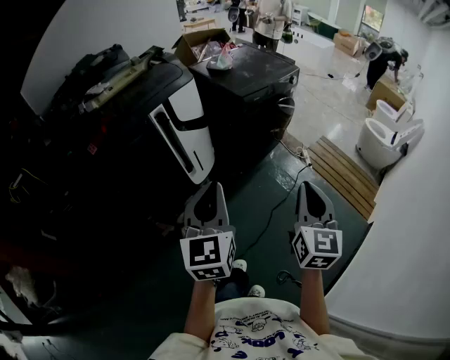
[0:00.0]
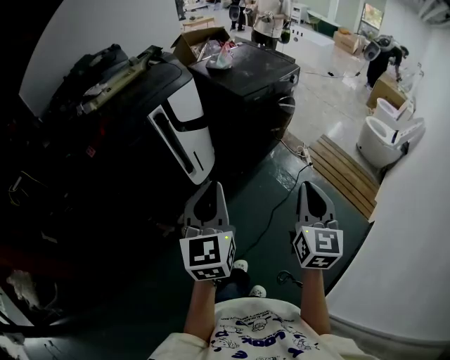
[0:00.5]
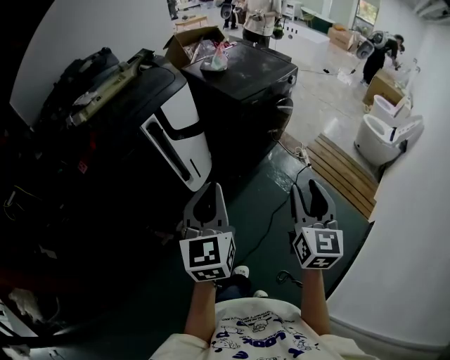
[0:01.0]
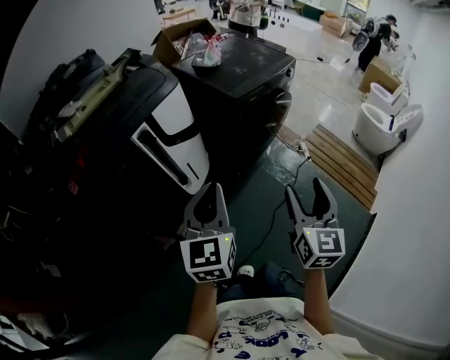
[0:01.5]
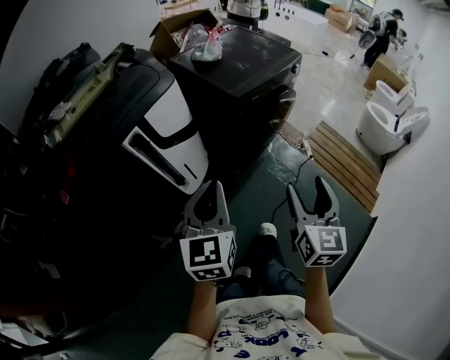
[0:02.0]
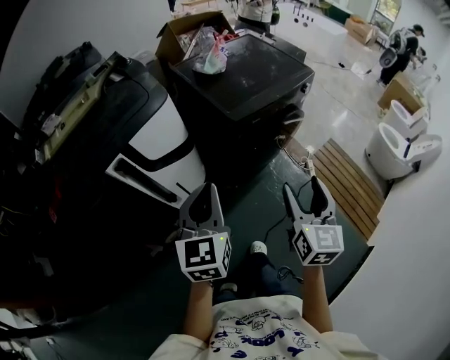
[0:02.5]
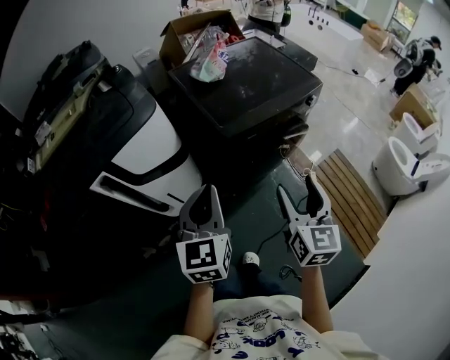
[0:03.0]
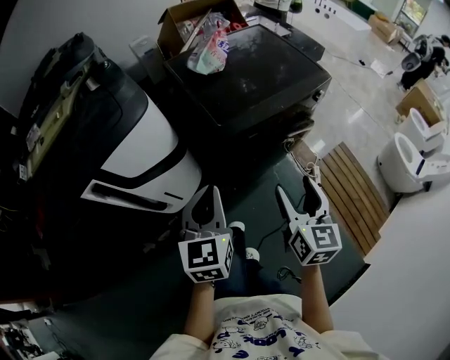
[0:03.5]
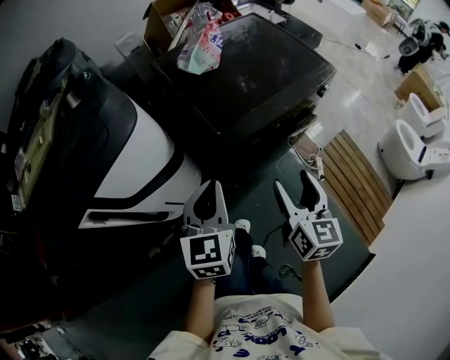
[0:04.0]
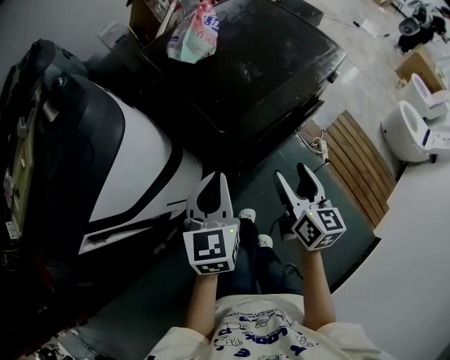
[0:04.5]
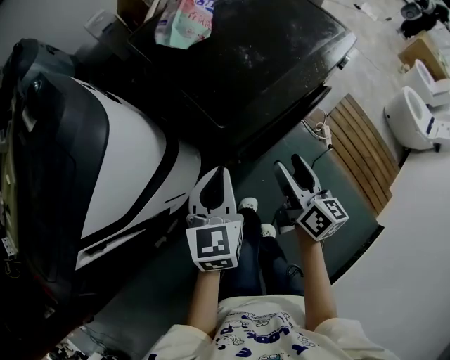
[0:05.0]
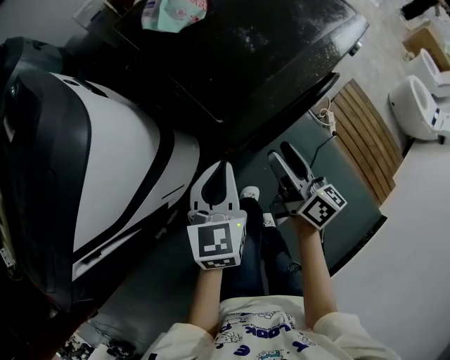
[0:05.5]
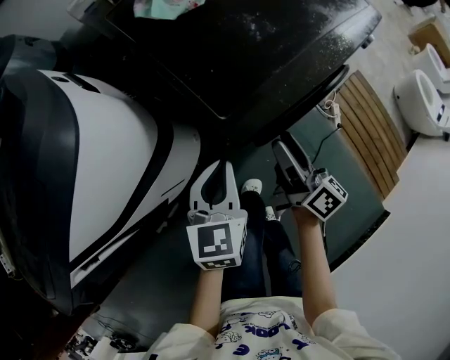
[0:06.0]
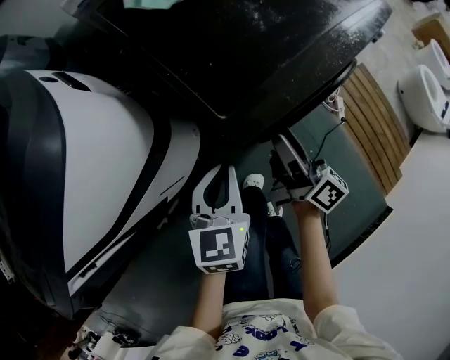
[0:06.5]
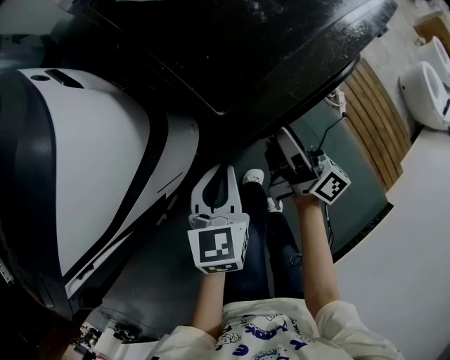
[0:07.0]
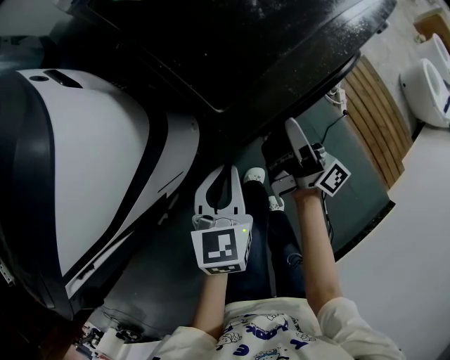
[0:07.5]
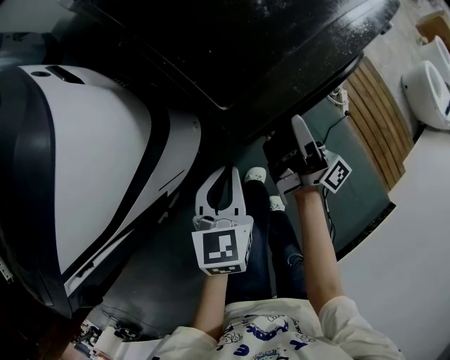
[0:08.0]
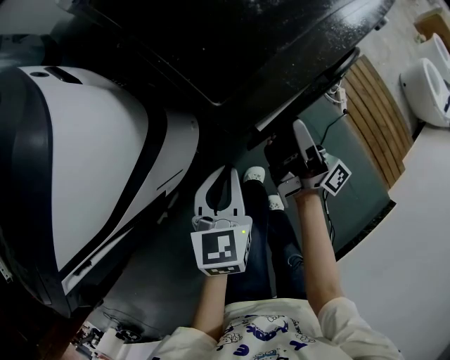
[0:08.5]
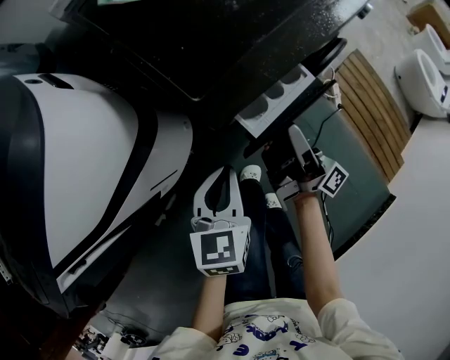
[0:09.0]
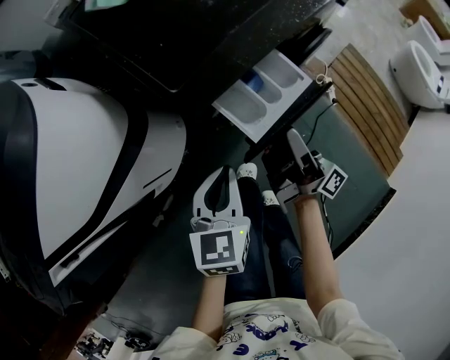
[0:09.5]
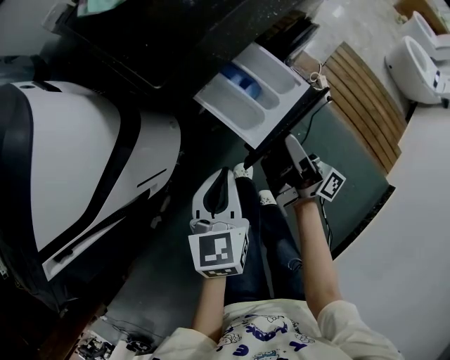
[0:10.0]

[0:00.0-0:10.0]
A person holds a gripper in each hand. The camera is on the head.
0:00.0 to 0:02.0: The two grippers go approximately 20 cm forward. The right gripper opens.
0:02.0 to 0:04.0: Both grippers travel together forward, about 35 cm. The right gripper swivels about 20 degrees.
0:04.0 to 0:06.0: The two grippers go about 20 cm downward and forward. The right gripper rotates around the line of its fingers by roughly 50 degrees, clockwise from behind.
0:06.0 to 0:08.0: The right gripper rotates some 40 degrees, while the left gripper heads downward, covering about 5 cm.
0:08.0 to 0:10.0: The right gripper is displaced backward and to the right by approximately 15 cm, while the left gripper moves to the right and backward, some 10 cm.

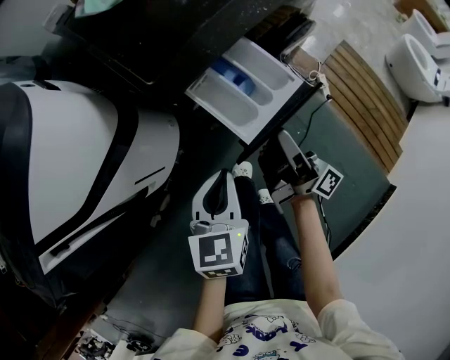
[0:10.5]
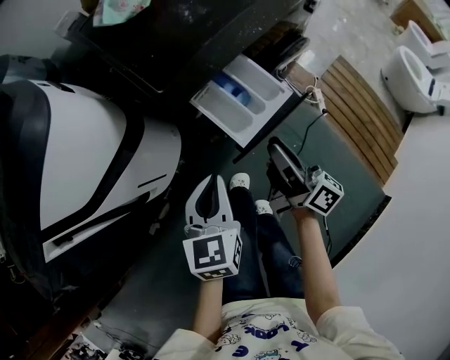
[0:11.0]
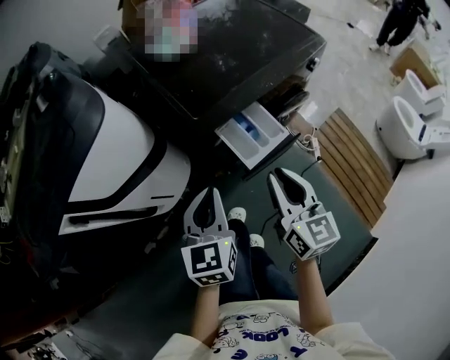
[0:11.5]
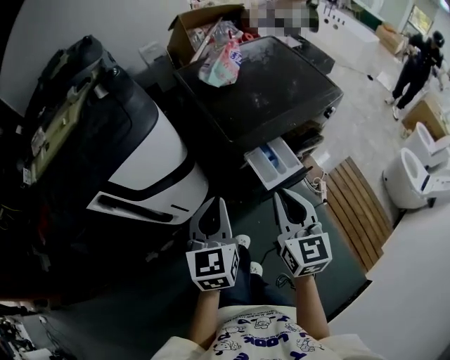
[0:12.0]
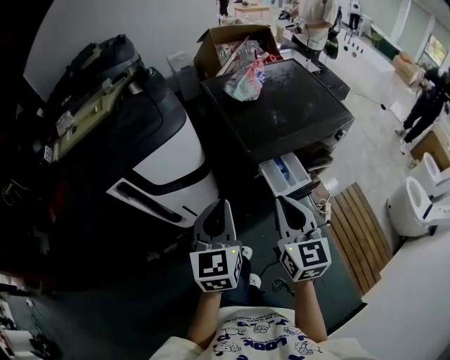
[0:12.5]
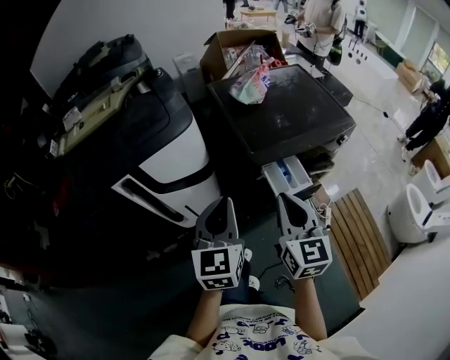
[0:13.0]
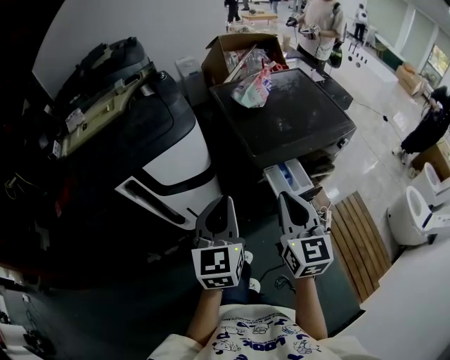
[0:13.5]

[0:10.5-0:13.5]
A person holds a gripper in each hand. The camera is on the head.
0:10.5 to 0:12.0: The right gripper is displaced upward by some 25 cm, rolls counterclockwise, seen from behind, by roughly 80 degrees, and closes its fingers. Meanwhile the left gripper is displaced upward and to the left by roughly 25 cm, and swivels about 30 degrees.
0:12.0 to 0:13.5: The left gripper travels upward by some 10 cm. The right gripper heads upward and to the left, covering roughly 10 cm.

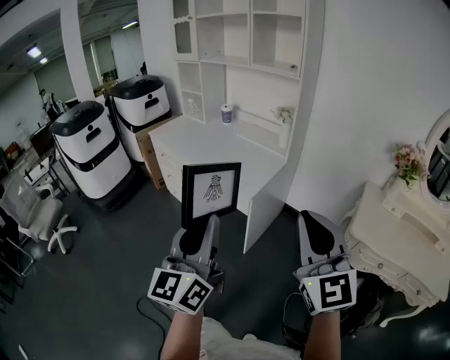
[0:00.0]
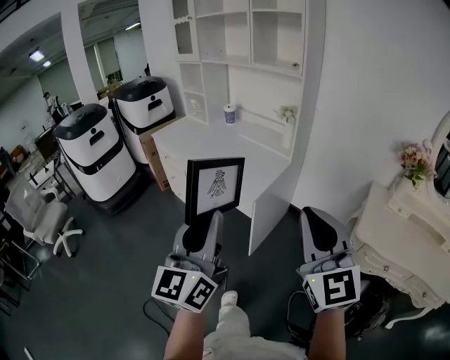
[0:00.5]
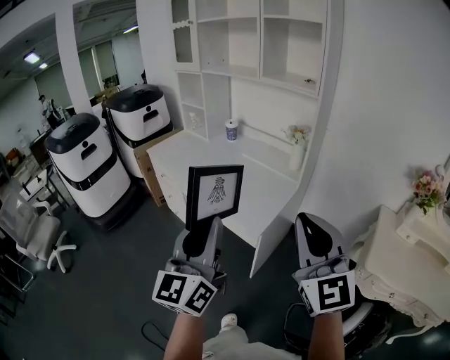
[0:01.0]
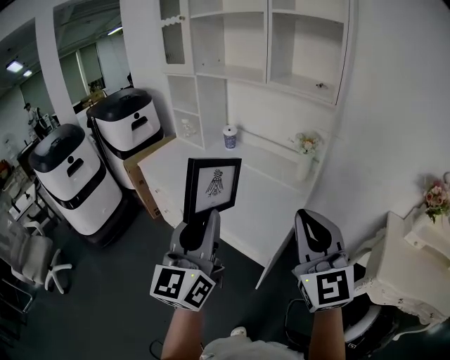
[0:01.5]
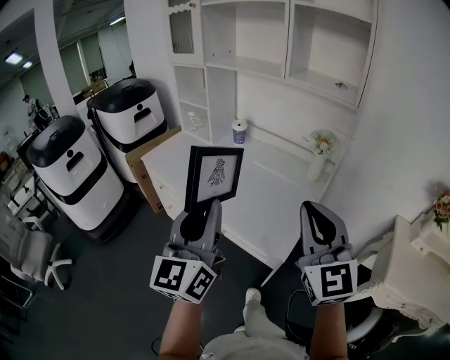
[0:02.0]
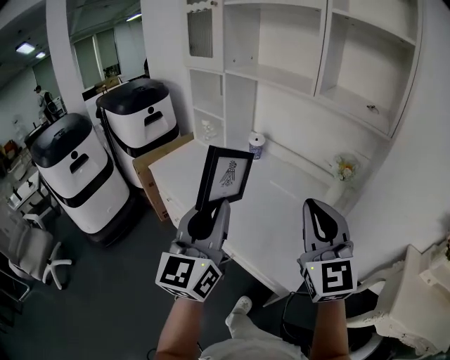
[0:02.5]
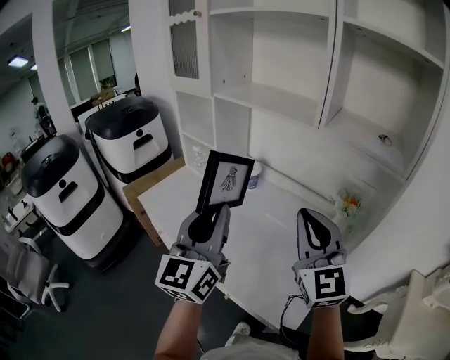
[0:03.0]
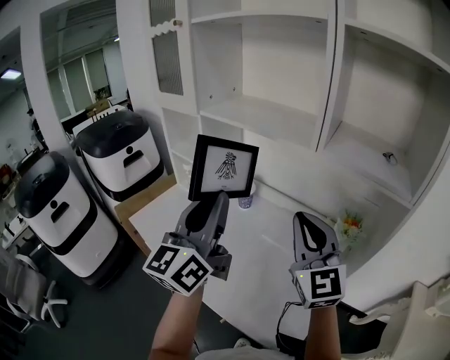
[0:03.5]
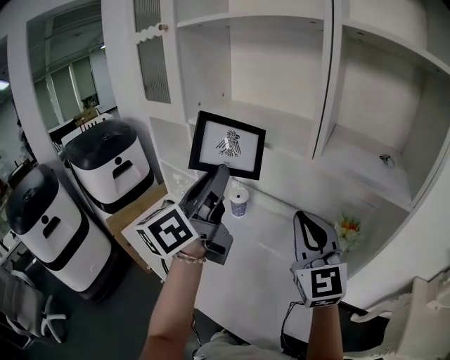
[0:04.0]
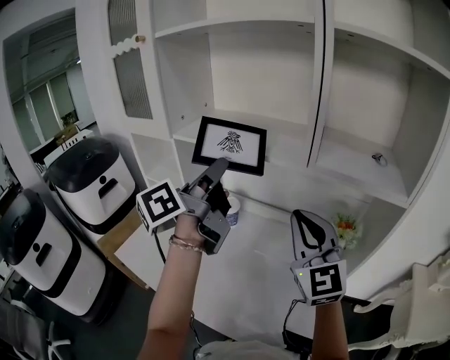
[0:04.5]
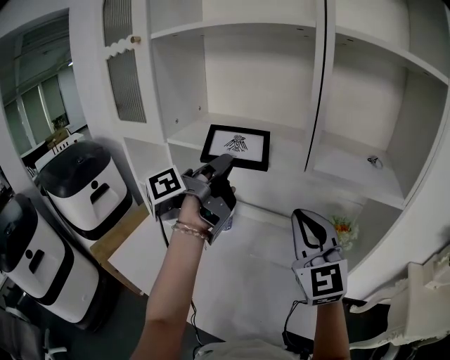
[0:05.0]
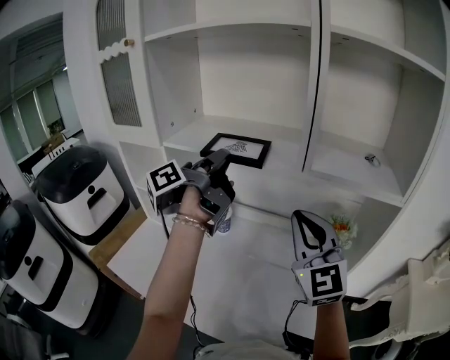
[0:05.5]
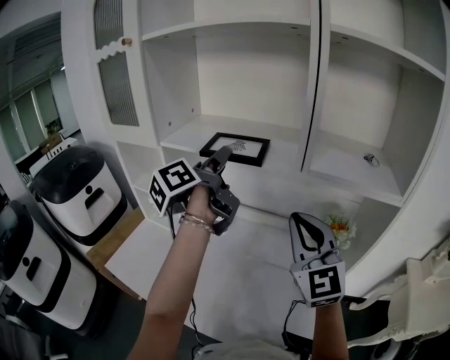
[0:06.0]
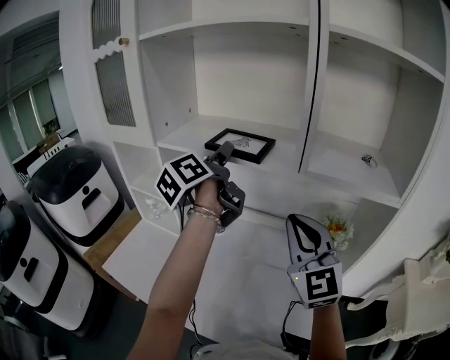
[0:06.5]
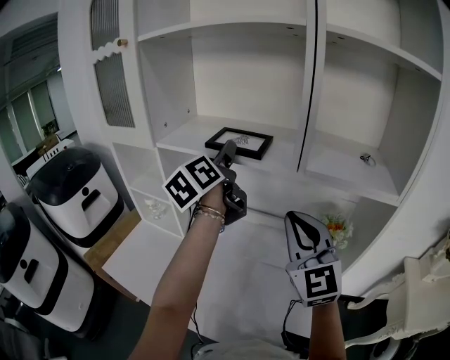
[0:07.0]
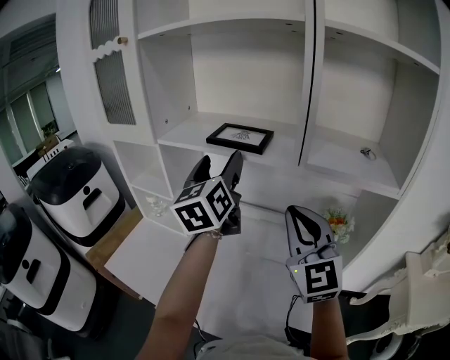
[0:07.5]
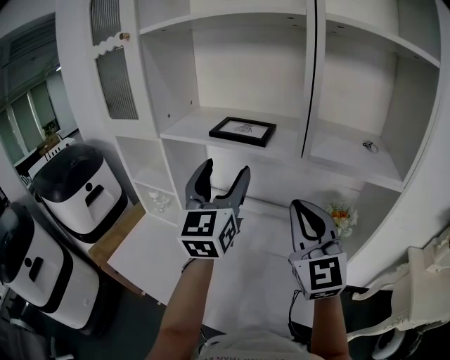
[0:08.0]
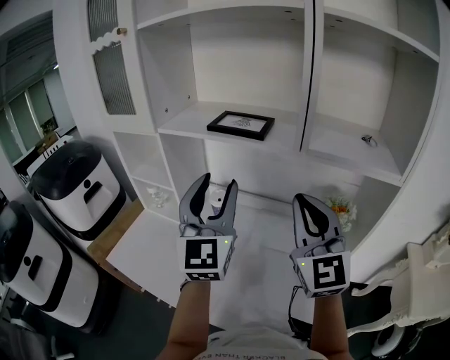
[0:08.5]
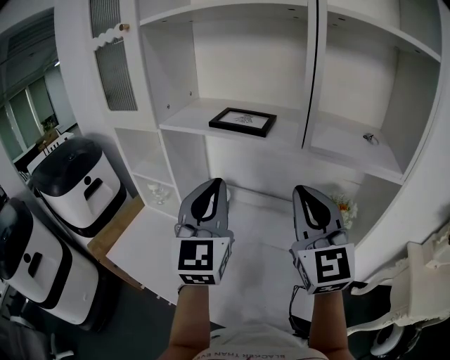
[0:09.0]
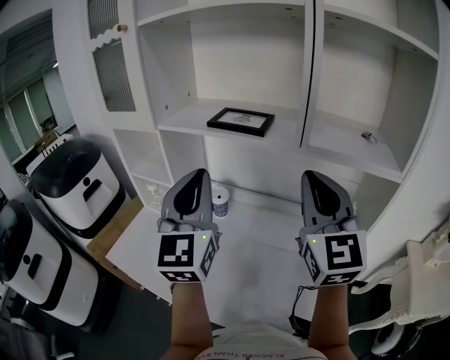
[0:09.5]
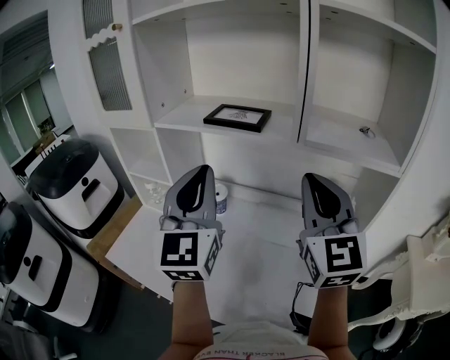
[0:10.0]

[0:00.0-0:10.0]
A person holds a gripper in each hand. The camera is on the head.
0:00.0 to 0:02.0: Both grippers travel together forward, some 35 cm.
0:02.0 to 0:04.0: Both grippers move forward, approximately 40 cm. The left gripper swivels some 30 degrees.
0:04.0 to 0:06.0: The left gripper travels forward by about 15 cm, rotates some 30 degrees, and opens up.
0:06.0 to 0:08.0: The left gripper travels backward by about 10 cm, and twists approximately 70 degrees clockwise, seen from behind.
0:08.0 to 0:10.0: The left gripper goes about 5 cm backward, and closes its fingers.

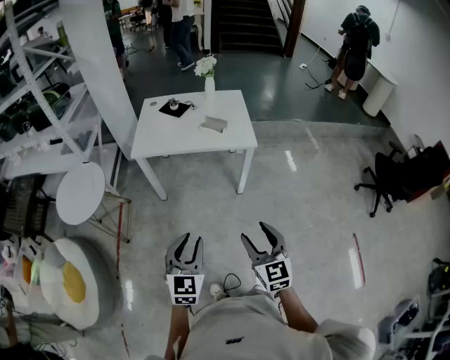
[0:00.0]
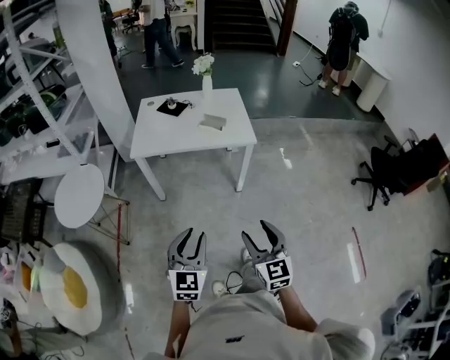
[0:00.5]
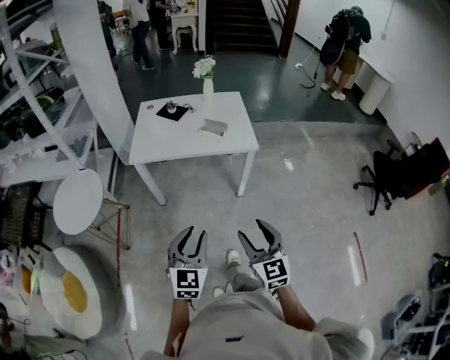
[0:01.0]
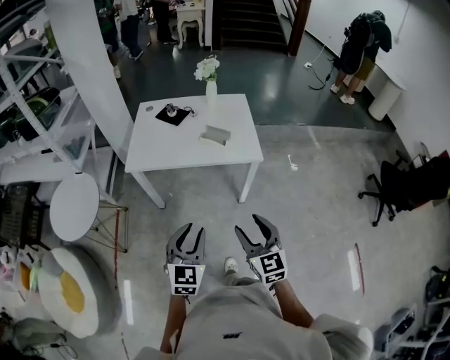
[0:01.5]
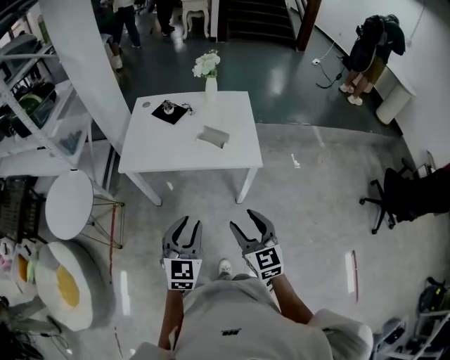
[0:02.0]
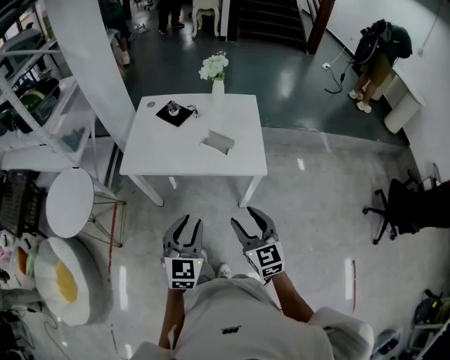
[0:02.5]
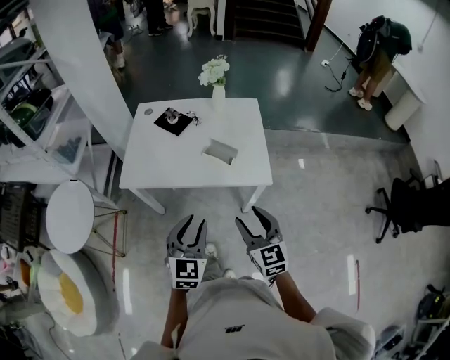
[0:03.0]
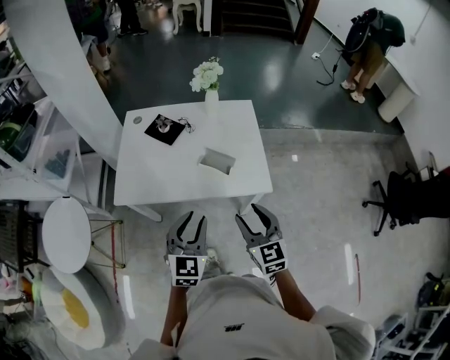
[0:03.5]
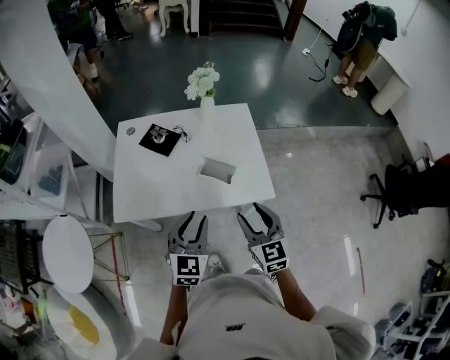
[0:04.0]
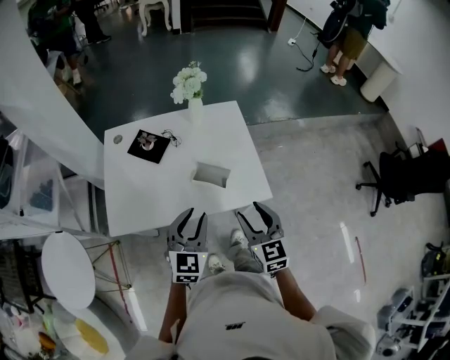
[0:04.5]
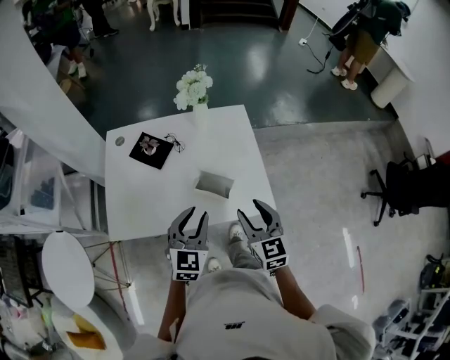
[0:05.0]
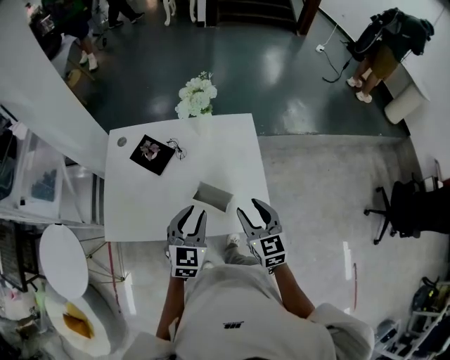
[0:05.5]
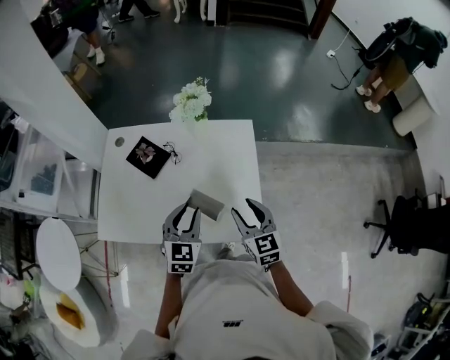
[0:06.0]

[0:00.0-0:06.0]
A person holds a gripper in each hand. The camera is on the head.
0:00.0 to 0:02.0: The two grippers go about 25 cm forward.
0:02.0 to 0:04.0: The grippers both shift forward by approximately 30 cm.
0:04.0 to 0:06.0: The two grippers go about 25 cm forward.
